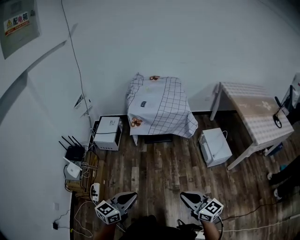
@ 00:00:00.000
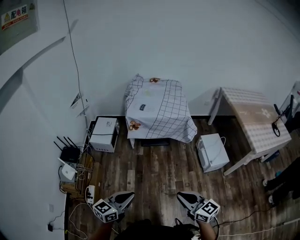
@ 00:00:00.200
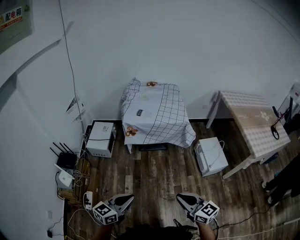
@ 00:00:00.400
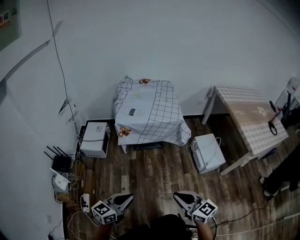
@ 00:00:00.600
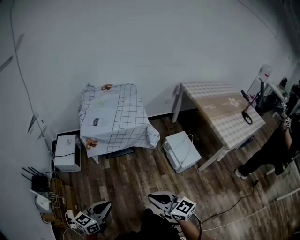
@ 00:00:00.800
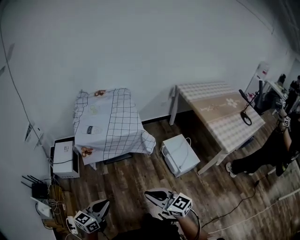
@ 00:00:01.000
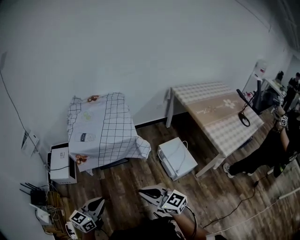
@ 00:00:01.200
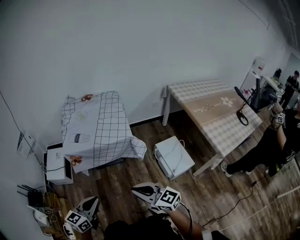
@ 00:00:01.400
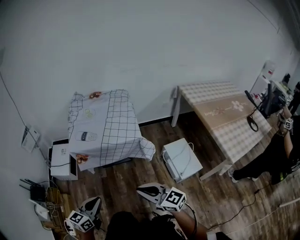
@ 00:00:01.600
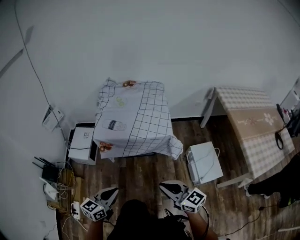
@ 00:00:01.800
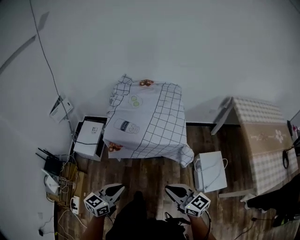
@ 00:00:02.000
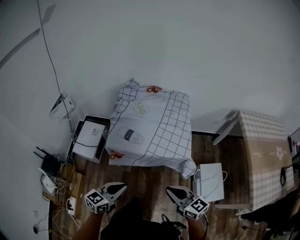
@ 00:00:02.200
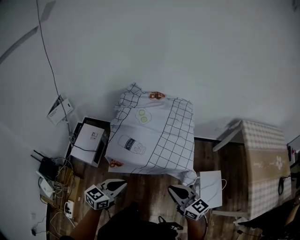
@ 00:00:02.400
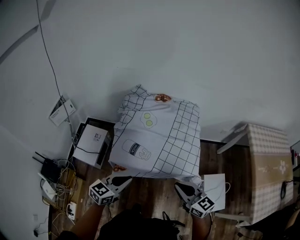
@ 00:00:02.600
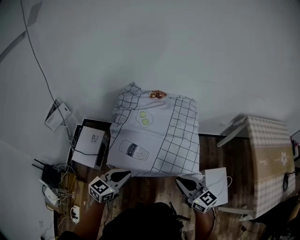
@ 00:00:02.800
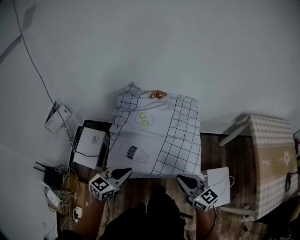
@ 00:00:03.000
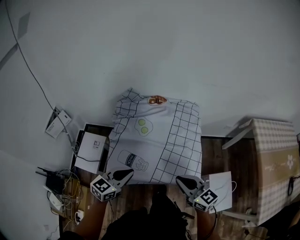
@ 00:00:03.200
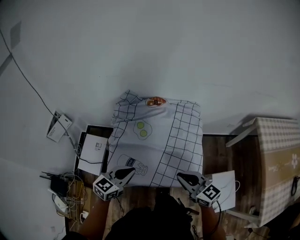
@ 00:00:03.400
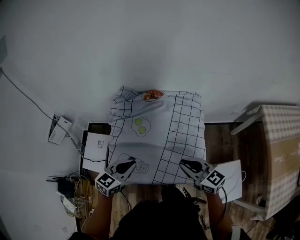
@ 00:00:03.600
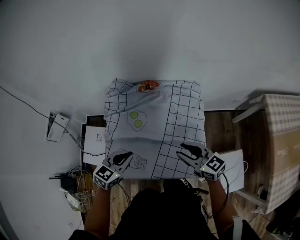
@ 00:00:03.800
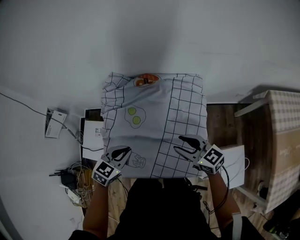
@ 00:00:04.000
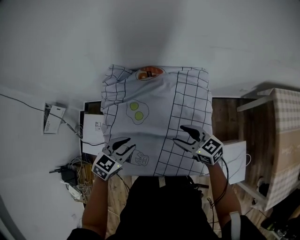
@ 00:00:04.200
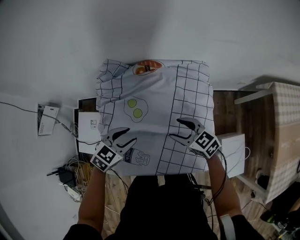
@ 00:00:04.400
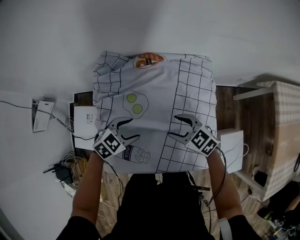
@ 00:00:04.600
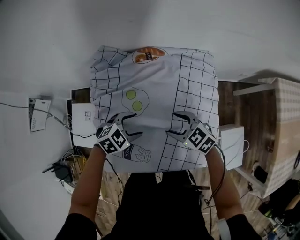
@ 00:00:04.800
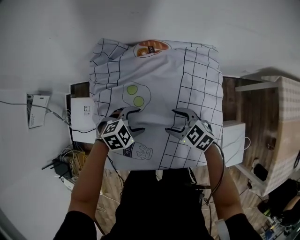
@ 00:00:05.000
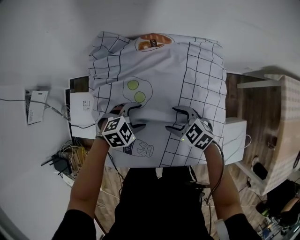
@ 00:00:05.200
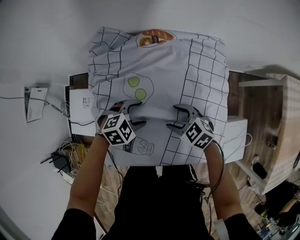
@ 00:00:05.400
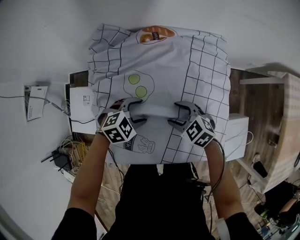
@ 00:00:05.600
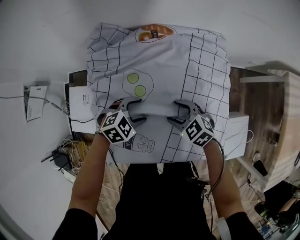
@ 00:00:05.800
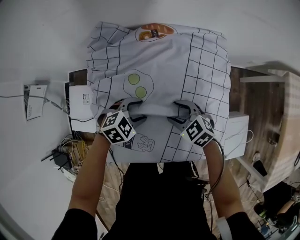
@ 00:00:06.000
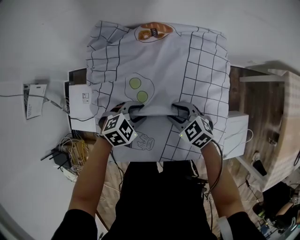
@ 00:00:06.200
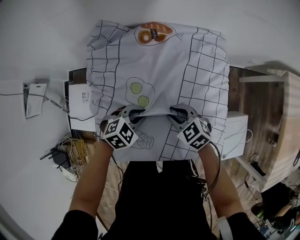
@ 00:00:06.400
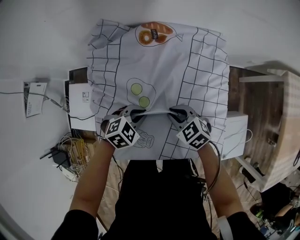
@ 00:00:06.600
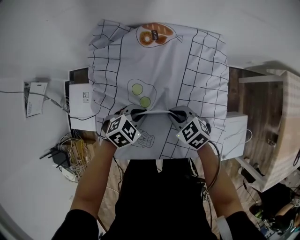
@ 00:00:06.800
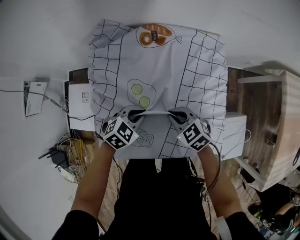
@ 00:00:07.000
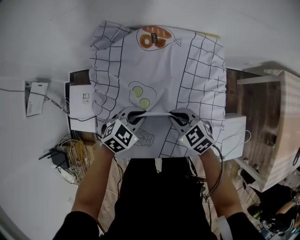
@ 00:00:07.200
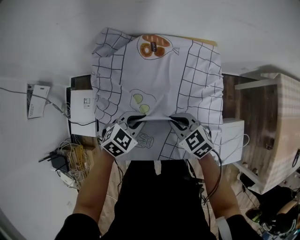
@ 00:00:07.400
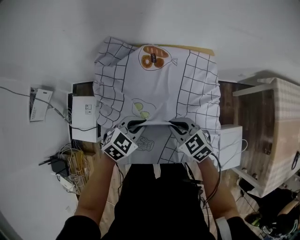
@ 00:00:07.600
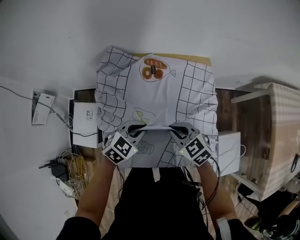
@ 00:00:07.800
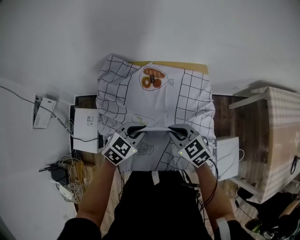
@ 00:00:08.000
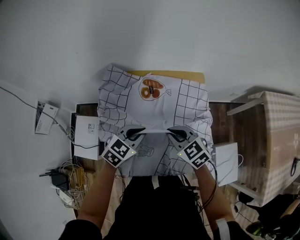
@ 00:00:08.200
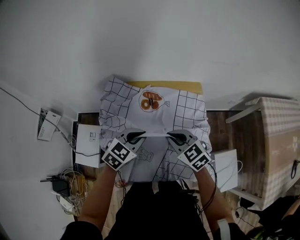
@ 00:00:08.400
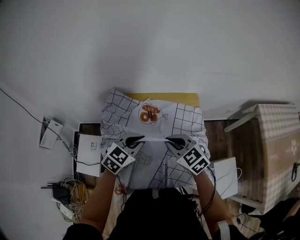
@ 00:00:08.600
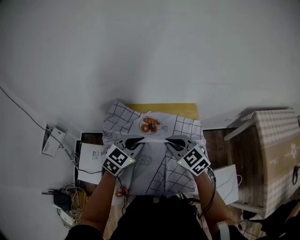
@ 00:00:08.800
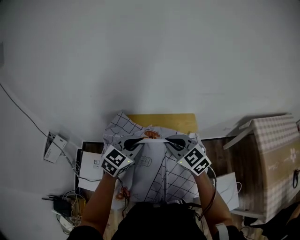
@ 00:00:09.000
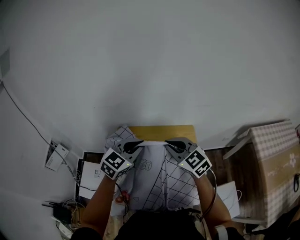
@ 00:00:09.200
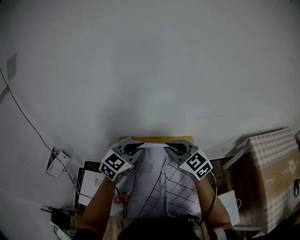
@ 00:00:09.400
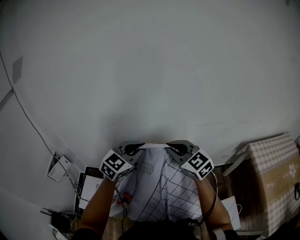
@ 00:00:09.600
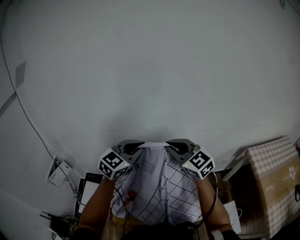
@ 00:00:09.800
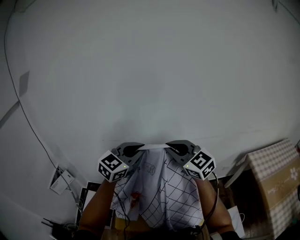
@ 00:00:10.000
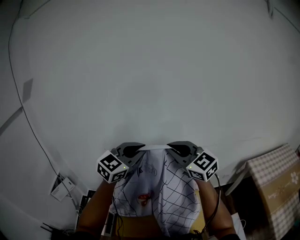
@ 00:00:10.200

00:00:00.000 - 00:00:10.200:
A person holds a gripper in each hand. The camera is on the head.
00:00:00.000 - 00:00:01.400: Both grippers travel together forward, some 35 cm.
00:00:01.400 - 00:00:03.000: Both grippers are carried forward, about 40 cm.
00:00:03.000 - 00:00:04.400: Both grippers move forward and downward, about 30 cm. The right gripper swivels some 20 degrees, and opens. The left gripper rotates approximately 30 degrees, and opens its fingers.
00:00:04.400 - 00:00:05.800: The two grippers go approximately 10 cm downward. The right gripper changes its angle by some 20 degrees. Meanwhile the left gripper rotates some 30 degrees, and opens up.
00:00:05.800 - 00:00:07.200: The left gripper changes place by some 5 cm, and closes up; the right gripper moves approximately 5 cm, and closes.
00:00:07.200 - 00:00:08.800: The grippers both shift upward by roughly 25 cm. The right gripper changes its angle by approximately 20 degrees. Meanwhile the left gripper rotates roughly 20 degrees.
00:00:08.800 - 00:00:10.200: The grippers both shift upward by some 30 cm. The left gripper changes its angle by approximately 30 degrees, while the right gripper changes its angle by some 30 degrees.

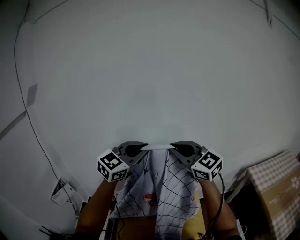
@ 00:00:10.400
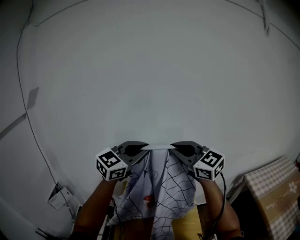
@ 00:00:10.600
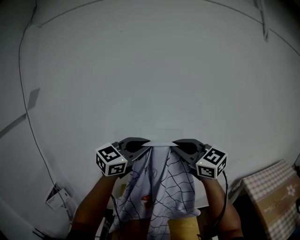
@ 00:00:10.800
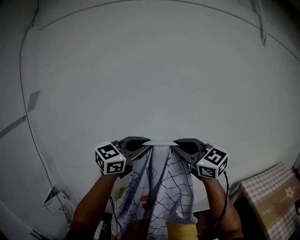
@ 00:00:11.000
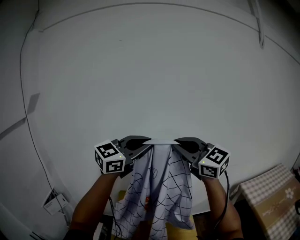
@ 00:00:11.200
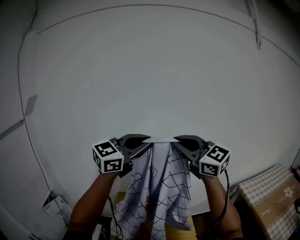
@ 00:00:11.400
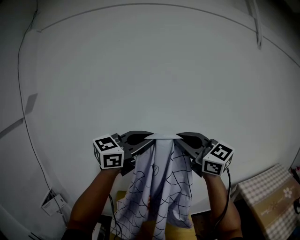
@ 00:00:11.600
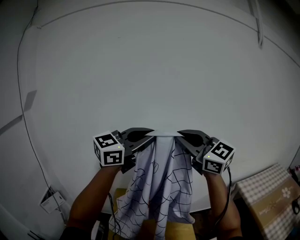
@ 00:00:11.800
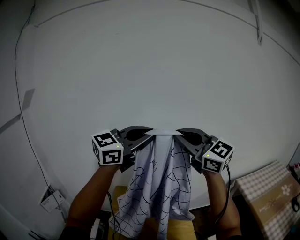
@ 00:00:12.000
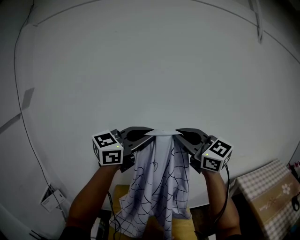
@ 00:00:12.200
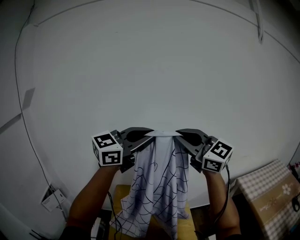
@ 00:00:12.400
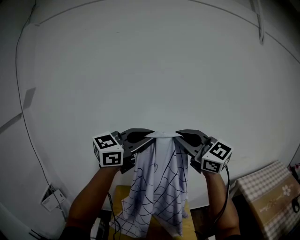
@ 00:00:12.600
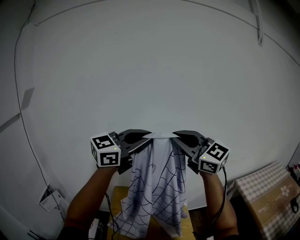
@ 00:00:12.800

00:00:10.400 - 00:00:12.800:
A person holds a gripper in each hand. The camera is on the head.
00:00:10.400 - 00:00:11.600: The grippers both shift upward by roughly 15 cm.
00:00:11.600 - 00:00:12.800: There are only small adjustments of the grippers.

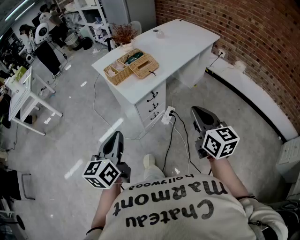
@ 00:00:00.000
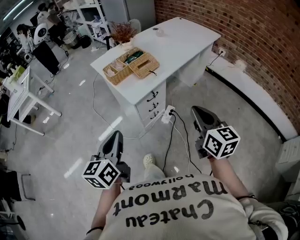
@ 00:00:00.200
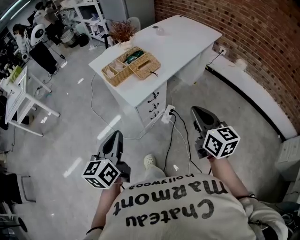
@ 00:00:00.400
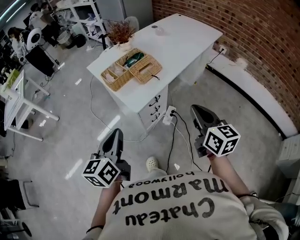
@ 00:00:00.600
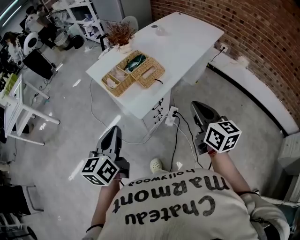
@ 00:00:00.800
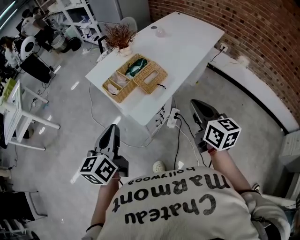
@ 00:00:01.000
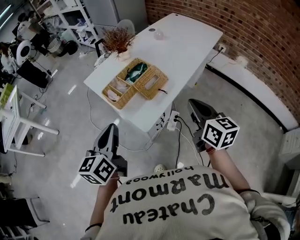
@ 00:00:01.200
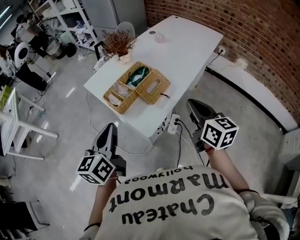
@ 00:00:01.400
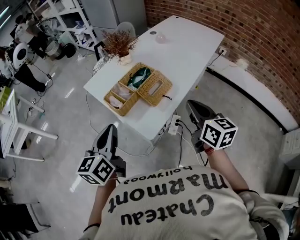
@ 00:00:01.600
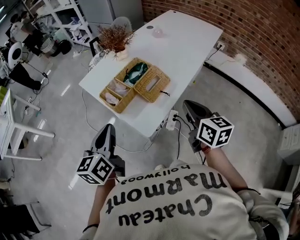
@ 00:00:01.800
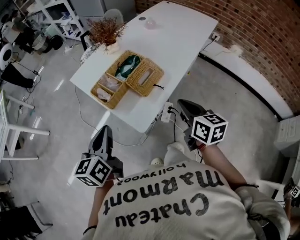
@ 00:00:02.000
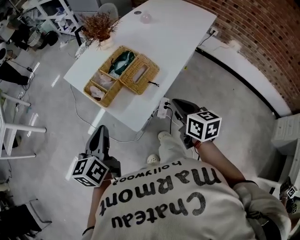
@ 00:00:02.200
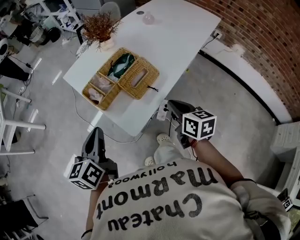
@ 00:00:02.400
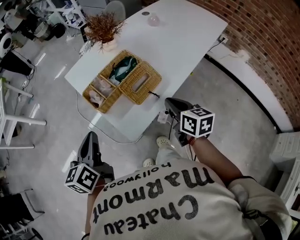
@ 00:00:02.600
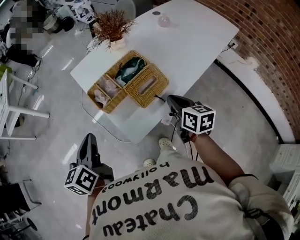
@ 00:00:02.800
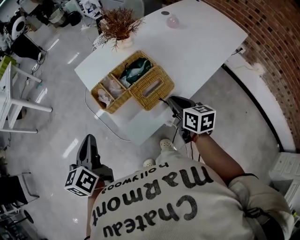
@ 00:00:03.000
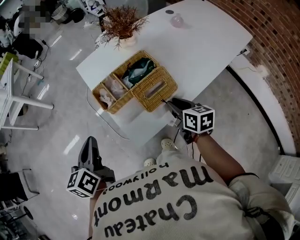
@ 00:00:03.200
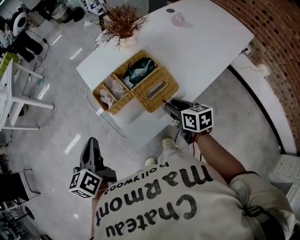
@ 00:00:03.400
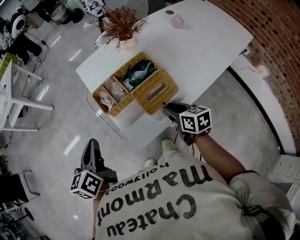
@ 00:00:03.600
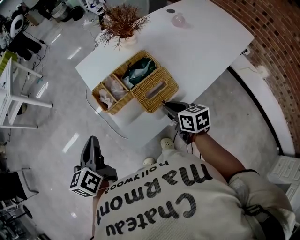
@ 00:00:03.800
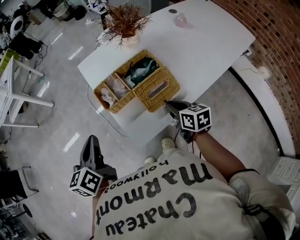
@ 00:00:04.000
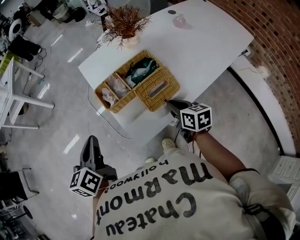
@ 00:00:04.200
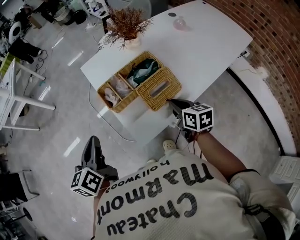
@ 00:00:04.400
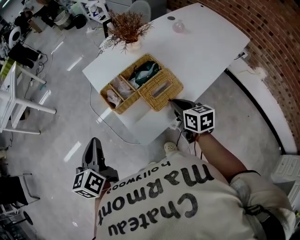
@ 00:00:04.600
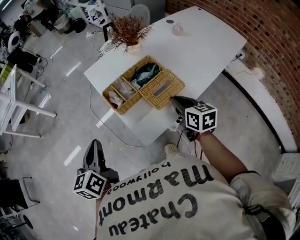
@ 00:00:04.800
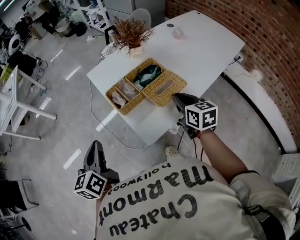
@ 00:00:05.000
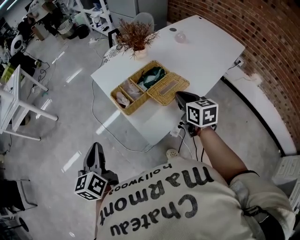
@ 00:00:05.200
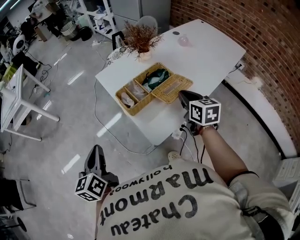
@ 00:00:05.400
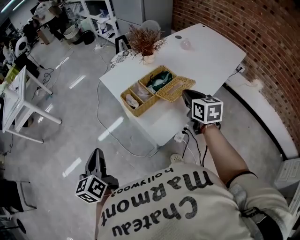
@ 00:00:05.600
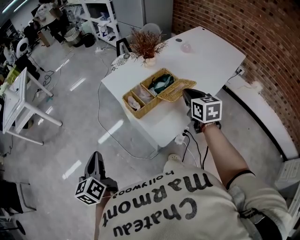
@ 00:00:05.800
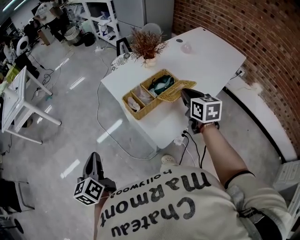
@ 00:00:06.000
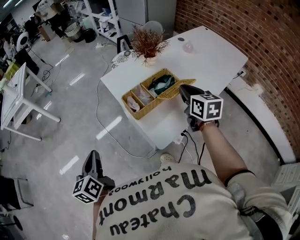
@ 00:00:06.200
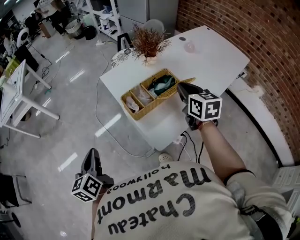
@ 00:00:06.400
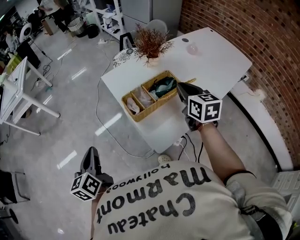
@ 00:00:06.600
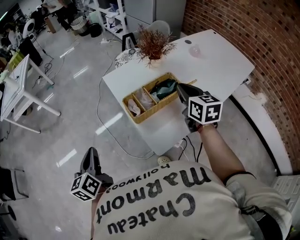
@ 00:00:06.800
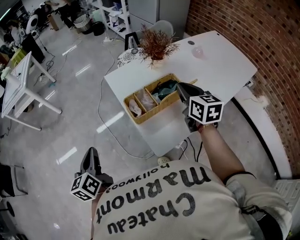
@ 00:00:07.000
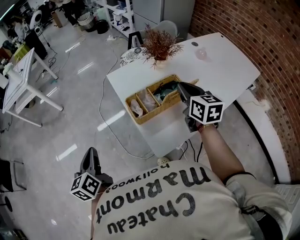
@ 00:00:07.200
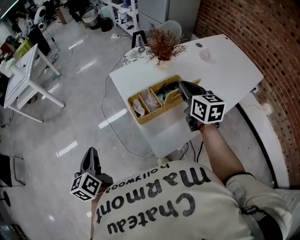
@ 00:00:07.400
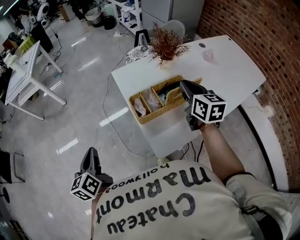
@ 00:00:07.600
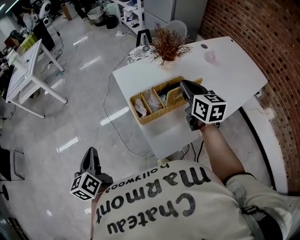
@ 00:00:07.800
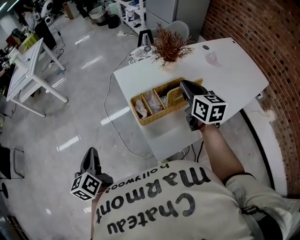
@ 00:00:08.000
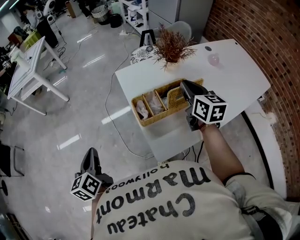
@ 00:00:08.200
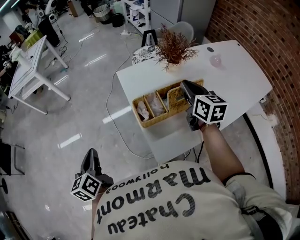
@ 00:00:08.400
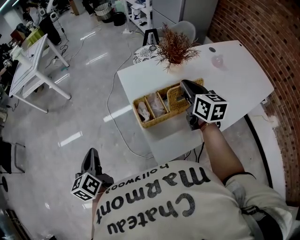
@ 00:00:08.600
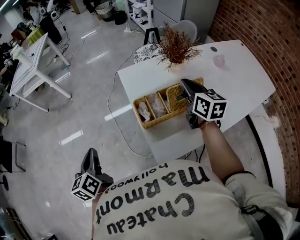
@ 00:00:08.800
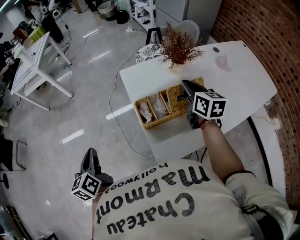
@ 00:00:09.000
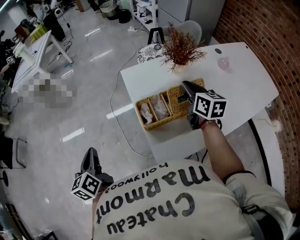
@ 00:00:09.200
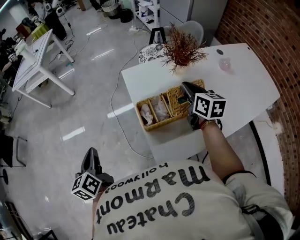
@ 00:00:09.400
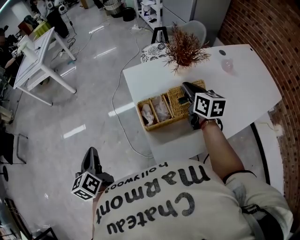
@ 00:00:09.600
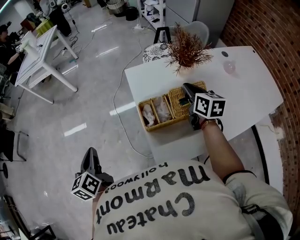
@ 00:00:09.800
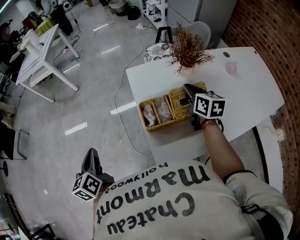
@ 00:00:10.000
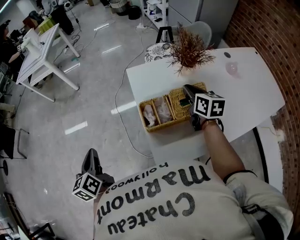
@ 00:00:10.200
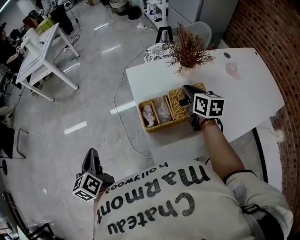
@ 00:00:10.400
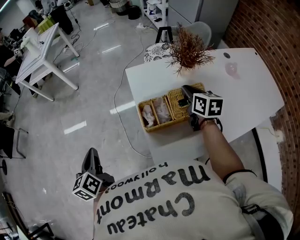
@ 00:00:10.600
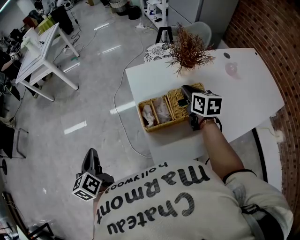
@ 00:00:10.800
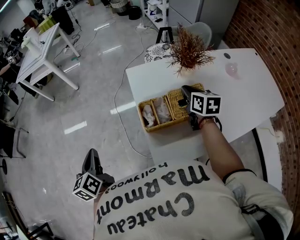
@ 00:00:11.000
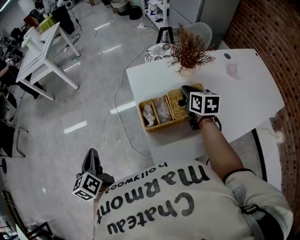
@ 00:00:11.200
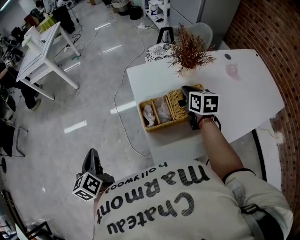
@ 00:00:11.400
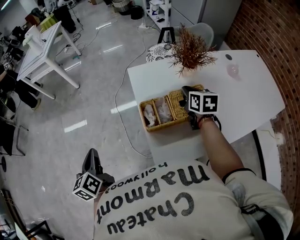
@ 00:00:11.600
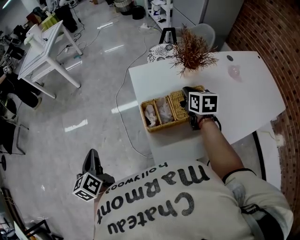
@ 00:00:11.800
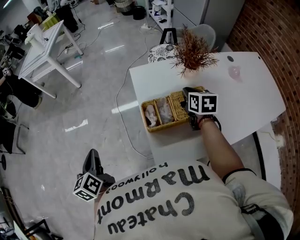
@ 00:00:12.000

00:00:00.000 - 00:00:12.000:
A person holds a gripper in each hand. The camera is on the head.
00:00:00.000 - 00:00:01.600: The two grippers go roughly 30 cm forward.
00:00:01.600 - 00:00:03.000: The right gripper goes some 20 cm downward and forward, and swivels about 30 degrees, while the left gripper shifts about 5 cm downward, and swivels roughly 30 degrees.
00:00:03.000 - 00:00:04.400: The right gripper opens and closes again.
00:00:04.400 - 00:00:06.000: The left gripper shifts roughly 15 cm to the left. The right gripper goes approximately 15 cm upward, and swivels about 20 degrees.
00:00:06.000 - 00:00:07.600: The right gripper shifts some 10 cm forward.
00:00:07.600 - 00:00:09.000: The right gripper is displaced forward by roughly 5 cm.
00:00:09.000 - 00:00:10.400: The right gripper heads downward, covering about 5 cm.
00:00:10.400 - 00:00:12.000: There are only small adjustments of the grippers.
